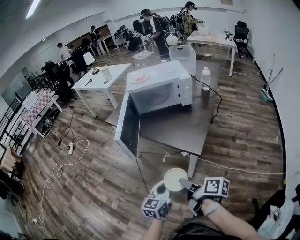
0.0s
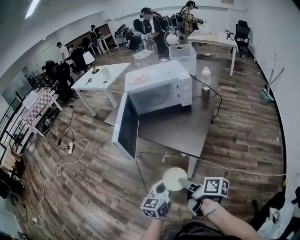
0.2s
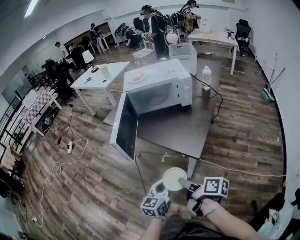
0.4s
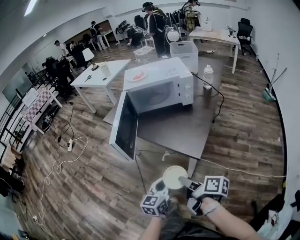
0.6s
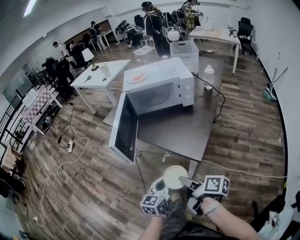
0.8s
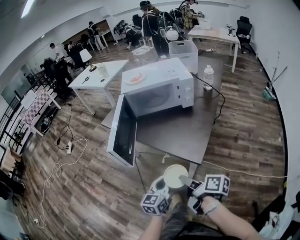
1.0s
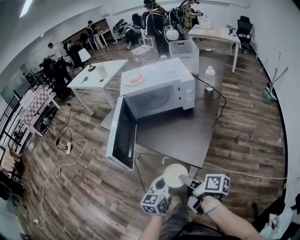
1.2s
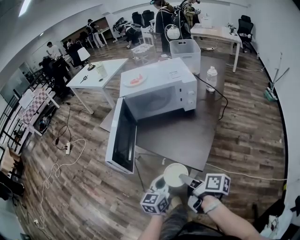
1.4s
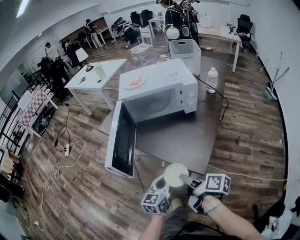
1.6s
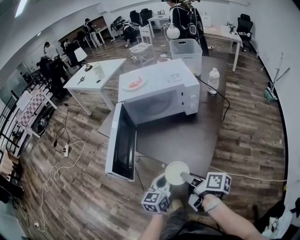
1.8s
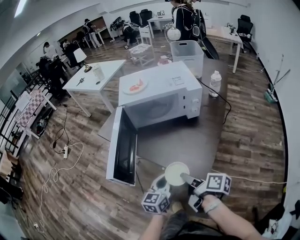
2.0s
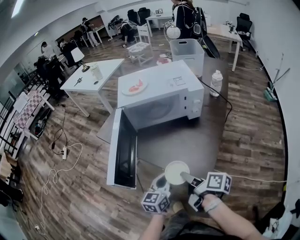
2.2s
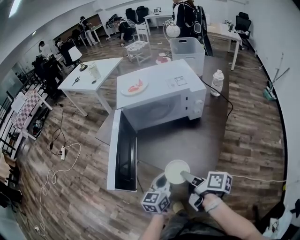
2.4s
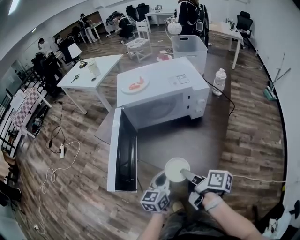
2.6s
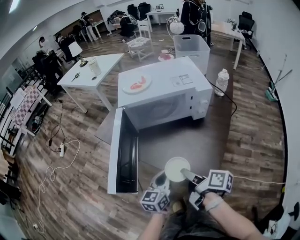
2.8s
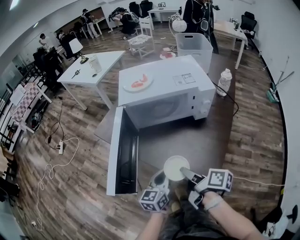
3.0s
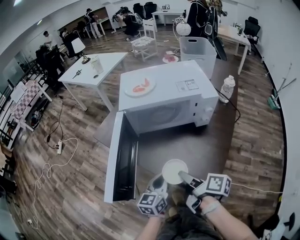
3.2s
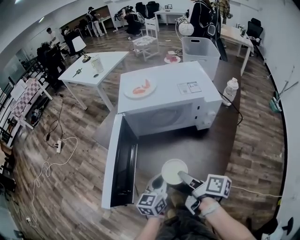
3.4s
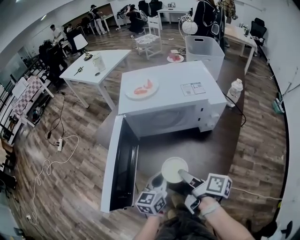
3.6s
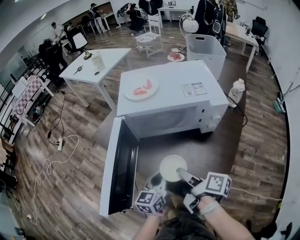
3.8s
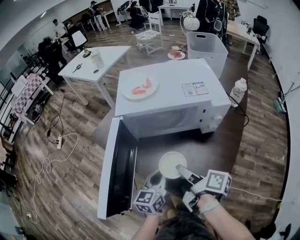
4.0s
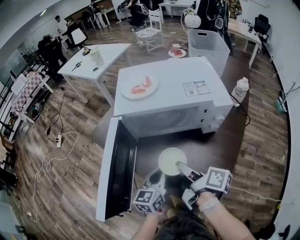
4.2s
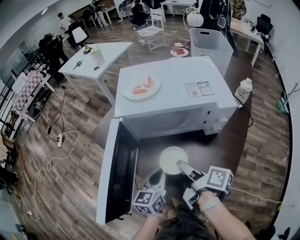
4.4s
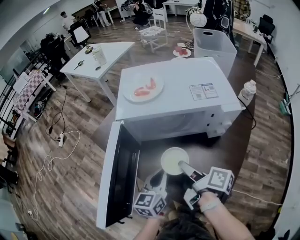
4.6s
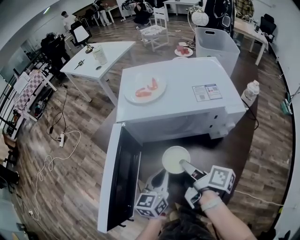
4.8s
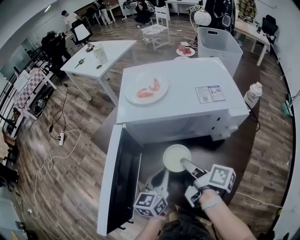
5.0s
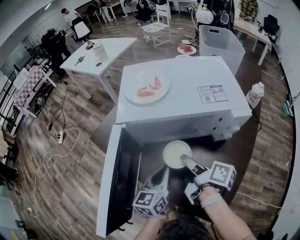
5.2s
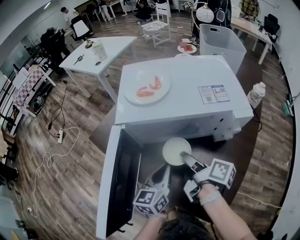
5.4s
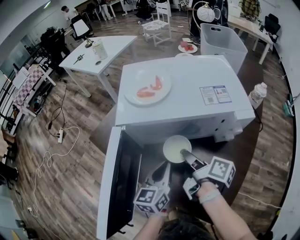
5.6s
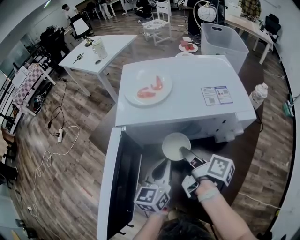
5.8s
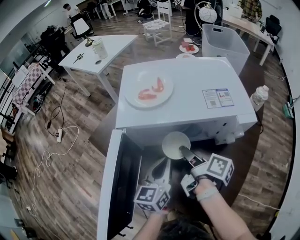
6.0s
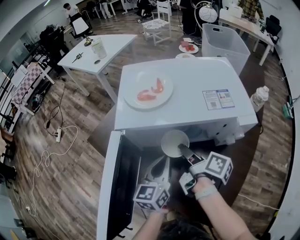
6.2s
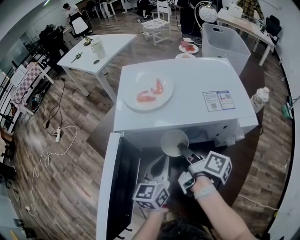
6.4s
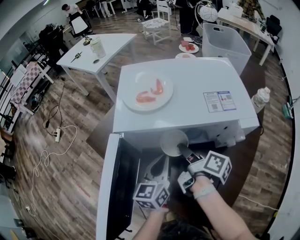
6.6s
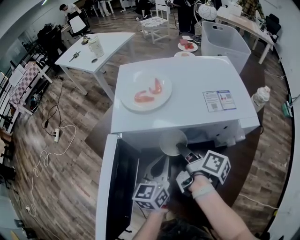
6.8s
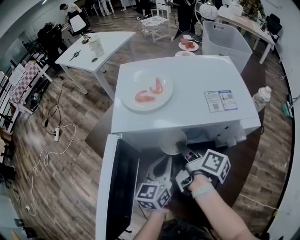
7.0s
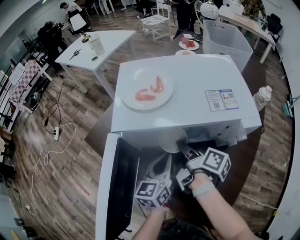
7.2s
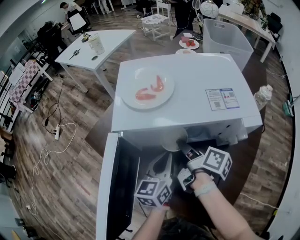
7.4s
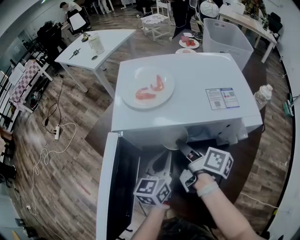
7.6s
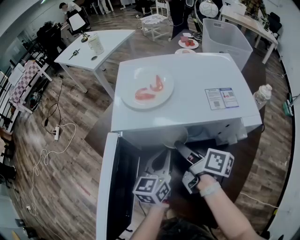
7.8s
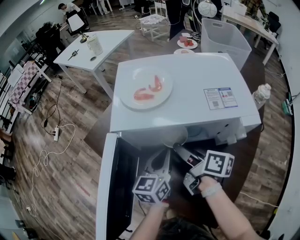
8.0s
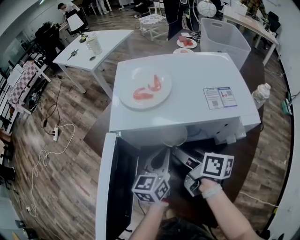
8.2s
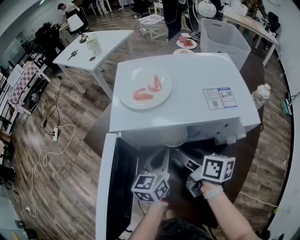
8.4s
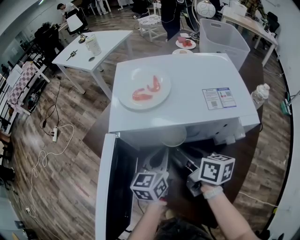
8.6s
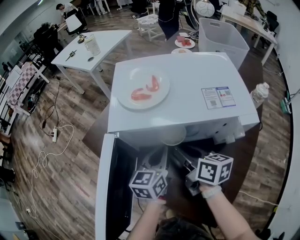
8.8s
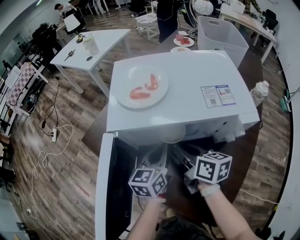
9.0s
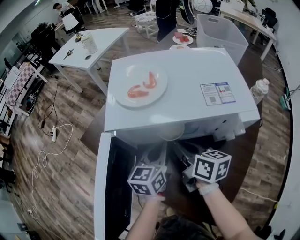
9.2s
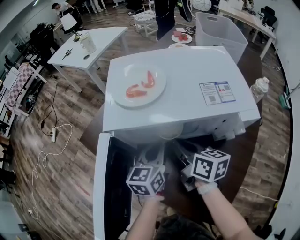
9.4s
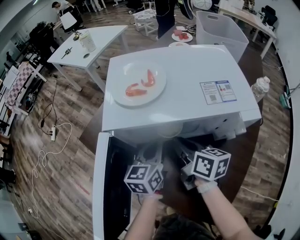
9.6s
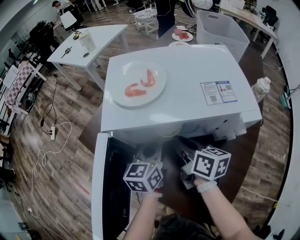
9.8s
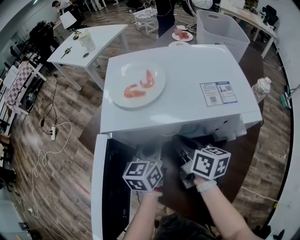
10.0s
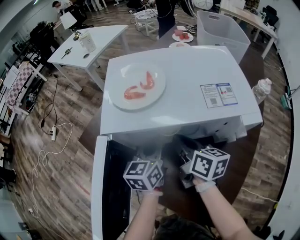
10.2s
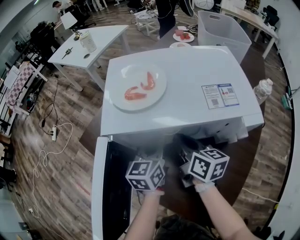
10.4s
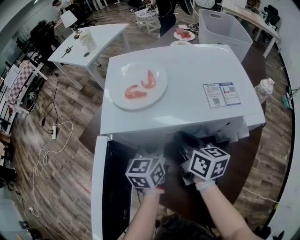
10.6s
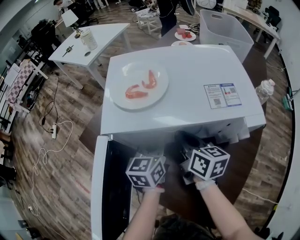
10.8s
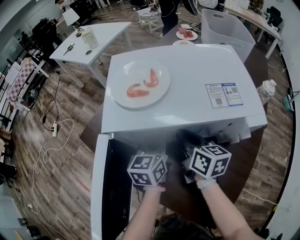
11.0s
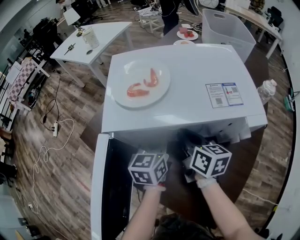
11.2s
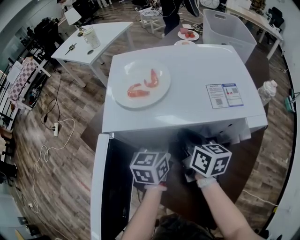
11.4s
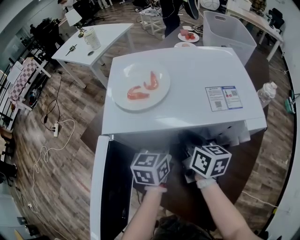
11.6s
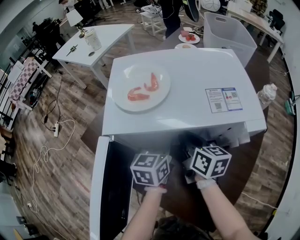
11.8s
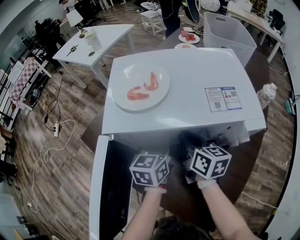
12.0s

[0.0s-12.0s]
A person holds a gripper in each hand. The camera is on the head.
0.0s to 1.6s: Both grippers travel together forward, approximately 15 cm.
1.6s to 3.0s: Both grippers move forward, some 15 cm.
3.0s to 4.4s: The grippers both shift forward by about 10 cm.
4.4s to 6.0s: Both grippers travel together forward, some 10 cm.
6.0s to 7.6s: There are only small adjustments of the grippers.
7.6s to 9.0s: The right gripper changes its angle by approximately 30 degrees, and closes.
9.0s to 10.4s: The grippers make only small movements.
10.4s to 12.0s: The grippers move only a little.

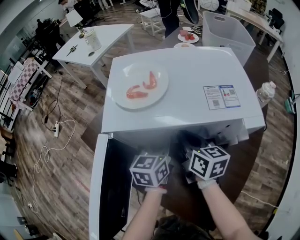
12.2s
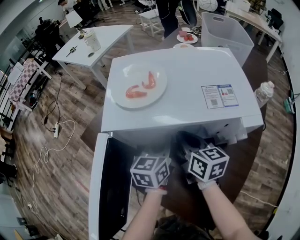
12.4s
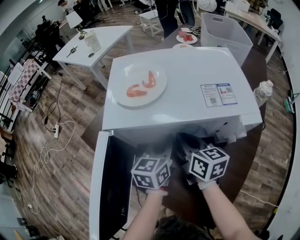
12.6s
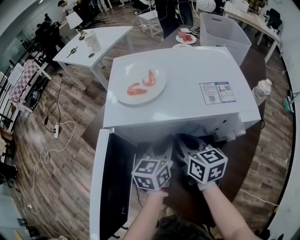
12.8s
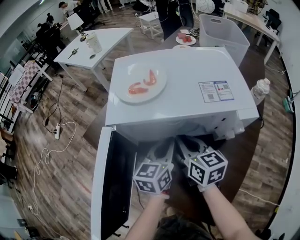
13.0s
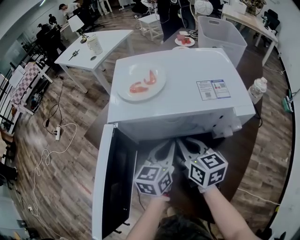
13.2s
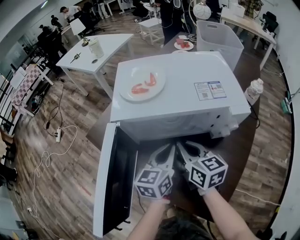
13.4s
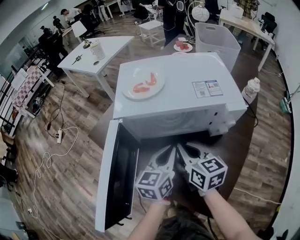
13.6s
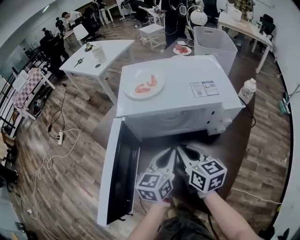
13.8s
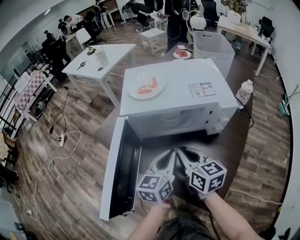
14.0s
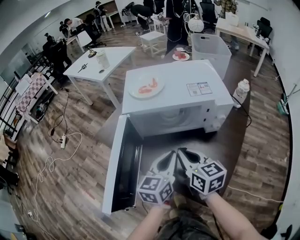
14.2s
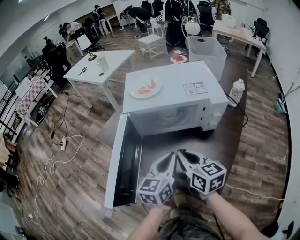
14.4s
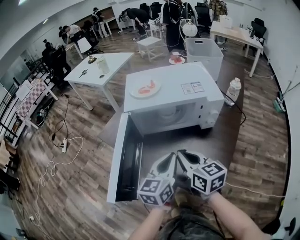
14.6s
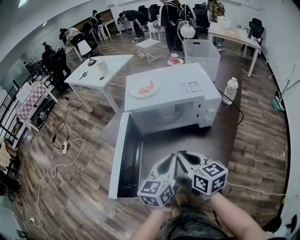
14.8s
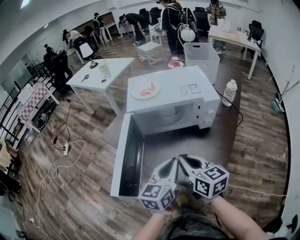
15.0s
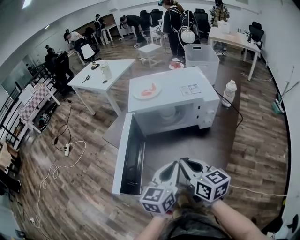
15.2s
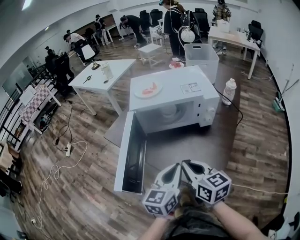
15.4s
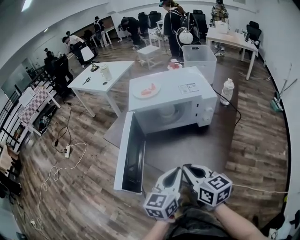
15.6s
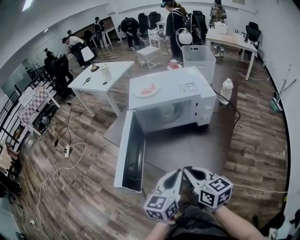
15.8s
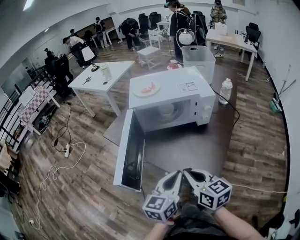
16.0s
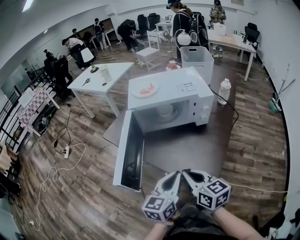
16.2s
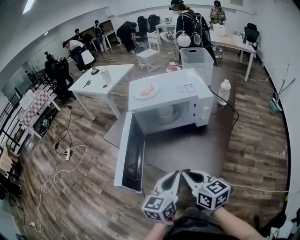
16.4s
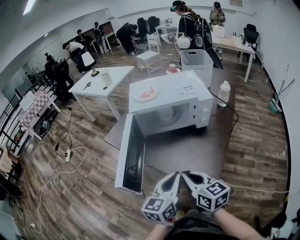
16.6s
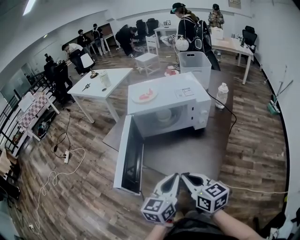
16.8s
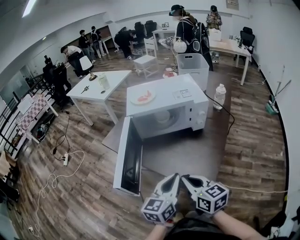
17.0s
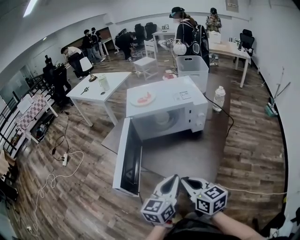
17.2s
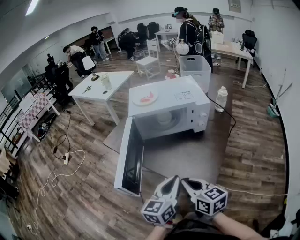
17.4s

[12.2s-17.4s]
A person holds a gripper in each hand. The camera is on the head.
12.2s to 14.0s: The grippers both shift backward and upward by approximately 15 cm.
14.0s to 15.6s: Both grippers move backward, approximately 15 cm.
15.6s to 17.4s: The right gripper moves backward, about 5 cm.

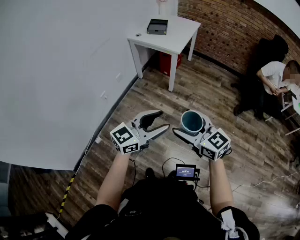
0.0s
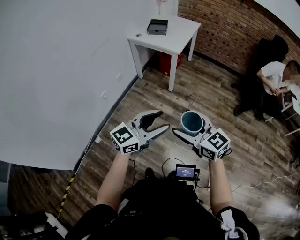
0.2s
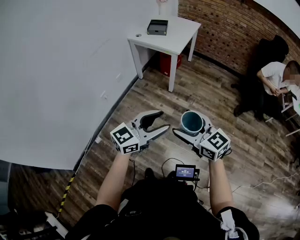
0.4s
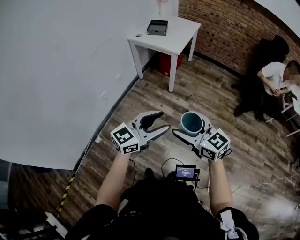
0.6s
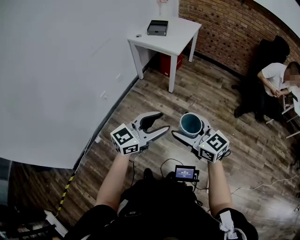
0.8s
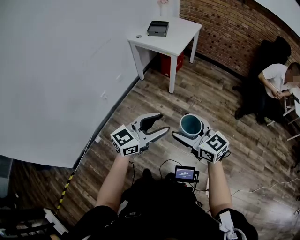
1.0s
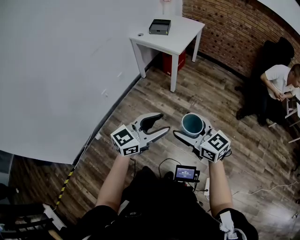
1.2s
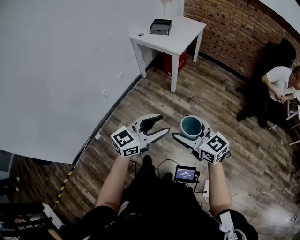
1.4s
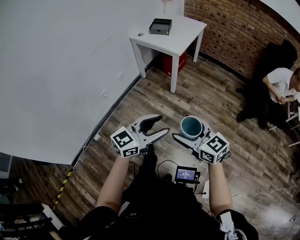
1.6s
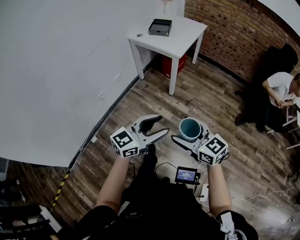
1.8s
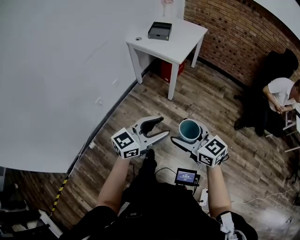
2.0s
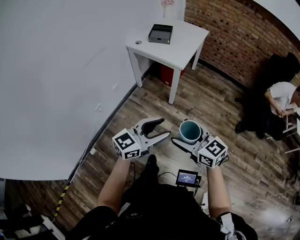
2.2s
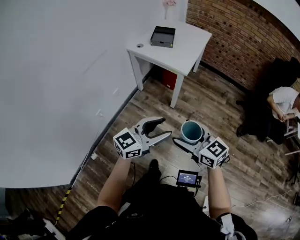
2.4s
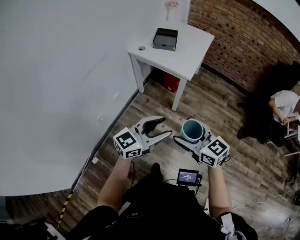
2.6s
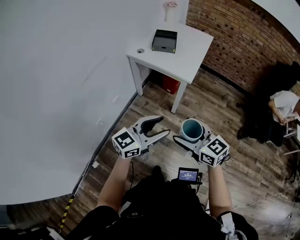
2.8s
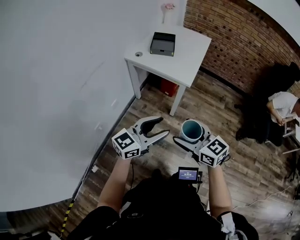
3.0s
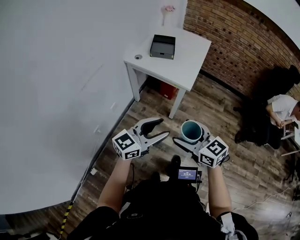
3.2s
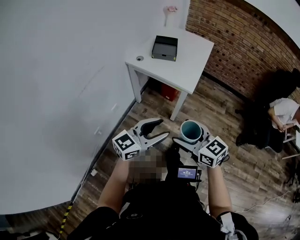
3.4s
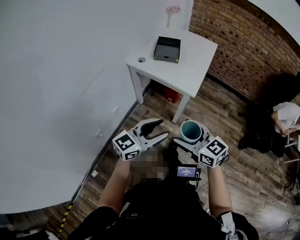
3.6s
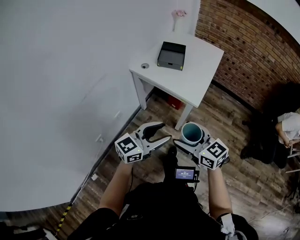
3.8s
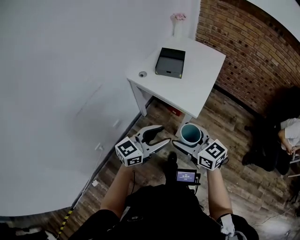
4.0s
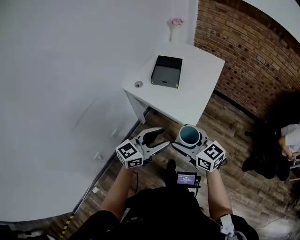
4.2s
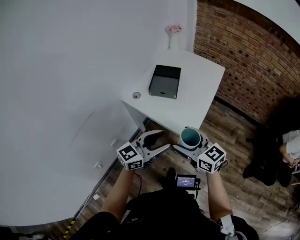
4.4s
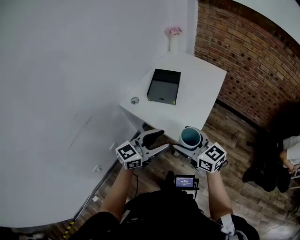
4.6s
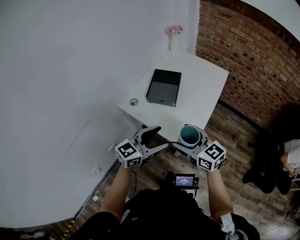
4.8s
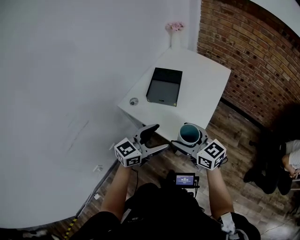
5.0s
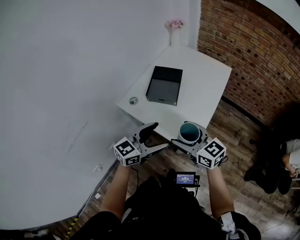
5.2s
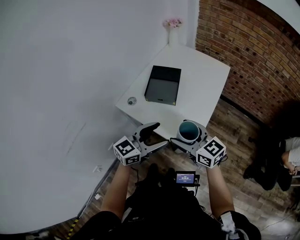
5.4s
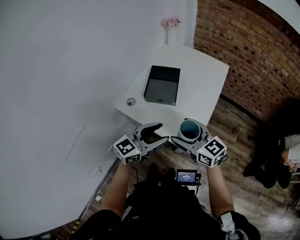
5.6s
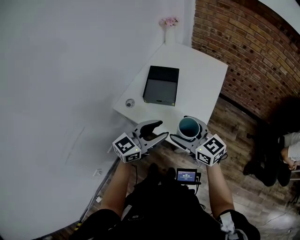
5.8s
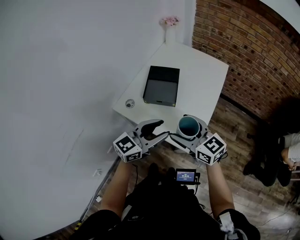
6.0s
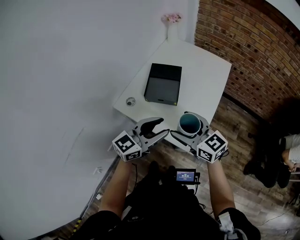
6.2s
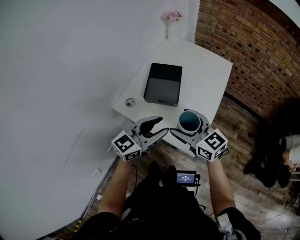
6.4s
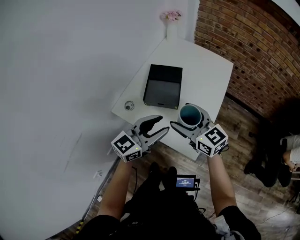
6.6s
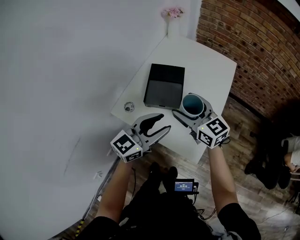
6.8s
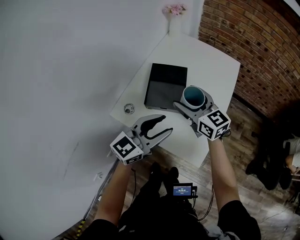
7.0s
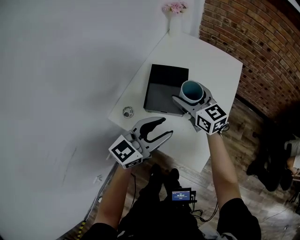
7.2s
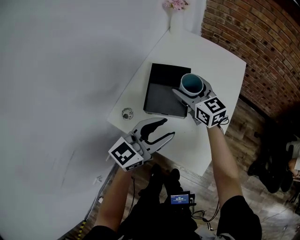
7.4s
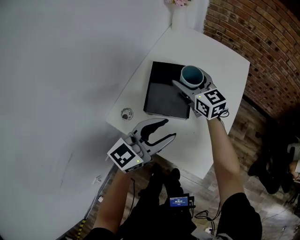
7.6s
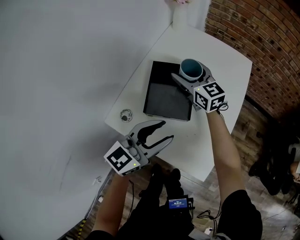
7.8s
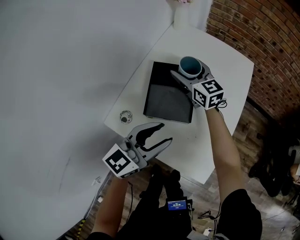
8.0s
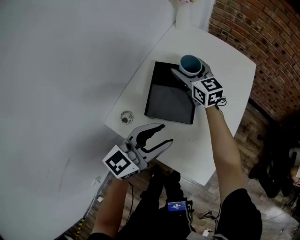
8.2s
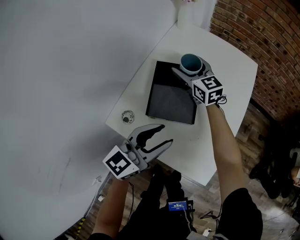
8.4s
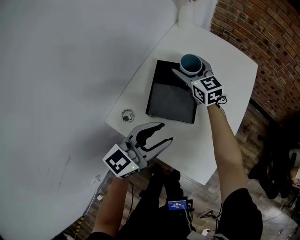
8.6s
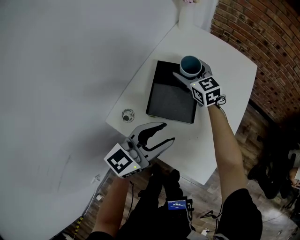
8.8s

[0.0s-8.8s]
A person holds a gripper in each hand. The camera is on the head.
0.0s to 1.4s: Both grippers travel together to the right, approximately 5 cm.
1.4s to 3.0s: The grippers both shift forward and to the left by roughly 35 cm.
3.0s to 4.4s: Both grippers travel together forward, roughly 30 cm.
4.4s to 5.8s: The grippers both shift forward by about 15 cm. The left gripper opens and closes again.
5.8s to 7.4s: The right gripper heads forward, covering some 30 cm; the left gripper goes about 15 cm forward.
7.4s to 8.8s: The right gripper moves forward and downward, some 10 cm.
